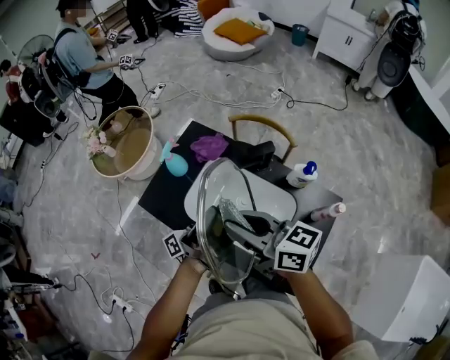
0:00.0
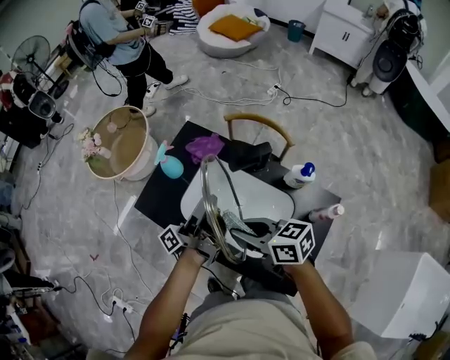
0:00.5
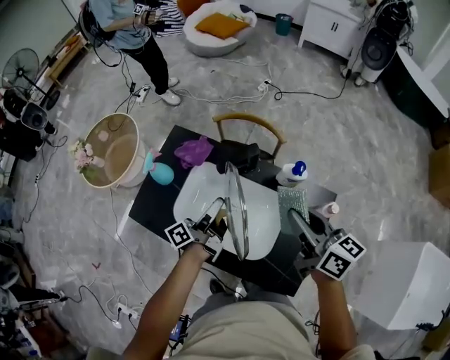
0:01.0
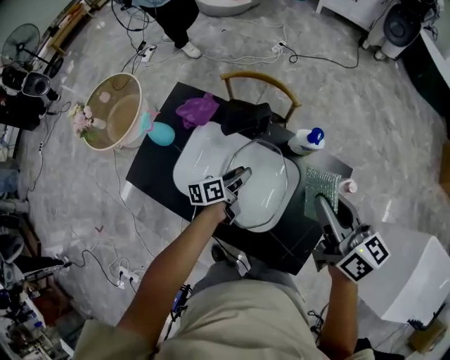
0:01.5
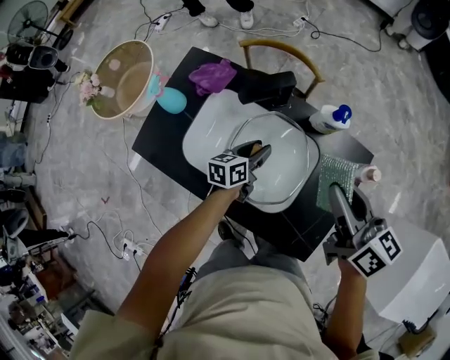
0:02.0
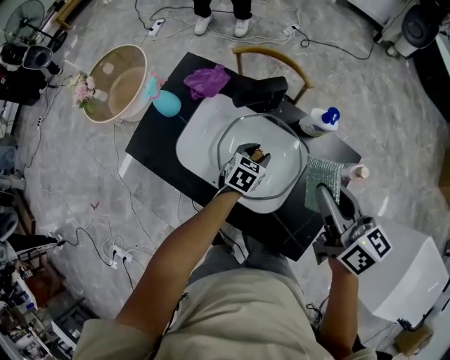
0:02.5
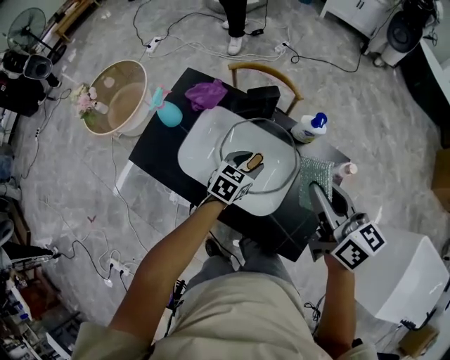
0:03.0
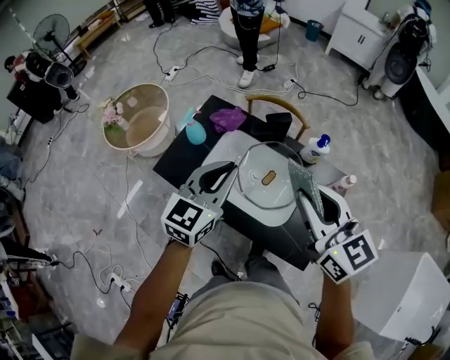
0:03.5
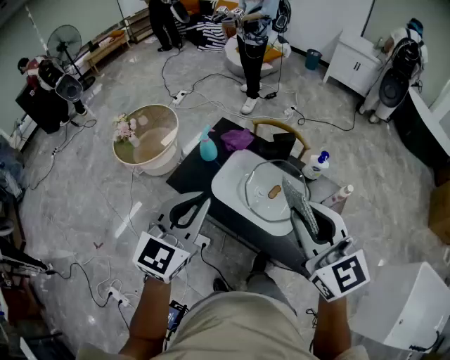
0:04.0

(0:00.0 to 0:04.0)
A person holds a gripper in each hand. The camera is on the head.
0:00.0 - 0:02.0: The right gripper moves up and down over approximately 10 cm, changing direction 2 times, and swivels about 30 degrees. Meanwhile the left gripper moves downward, roughly 25 cm, and tips its fingers downward by about 60 degrees.
0:02.0 - 0:04.0: The left gripper heads upward, backward and to the left, covering about 50 cm, rotates around the line of its fingers by approximately 50 degrees, clockwise from behind, and closes up, while the right gripper shifts approximately 30 cm upward, to the left and backward, and twists some 40 degrees counterclockwise, seen from behind.

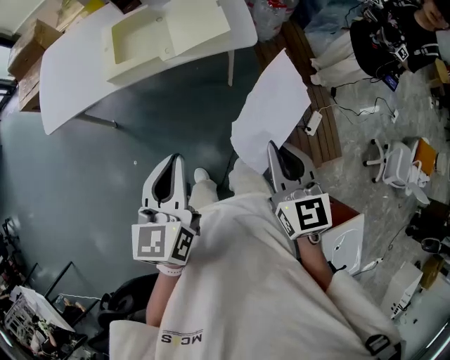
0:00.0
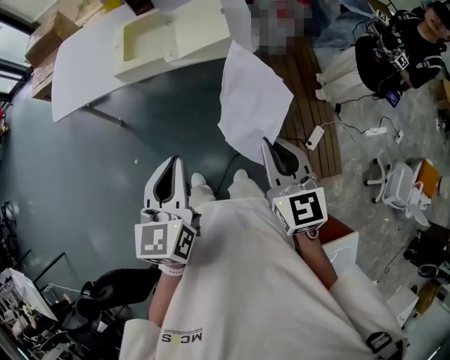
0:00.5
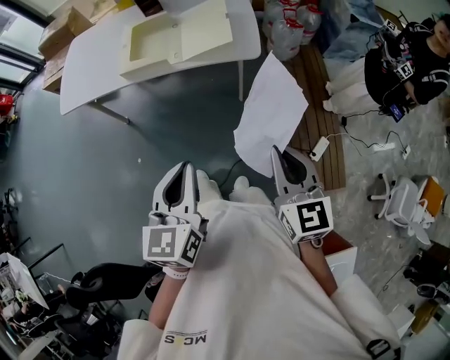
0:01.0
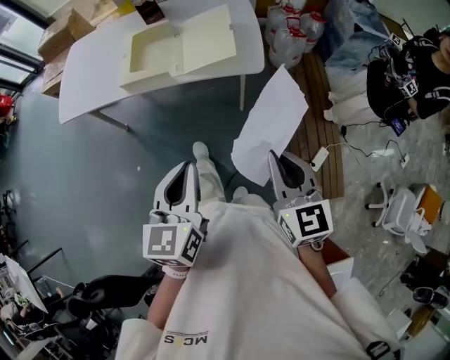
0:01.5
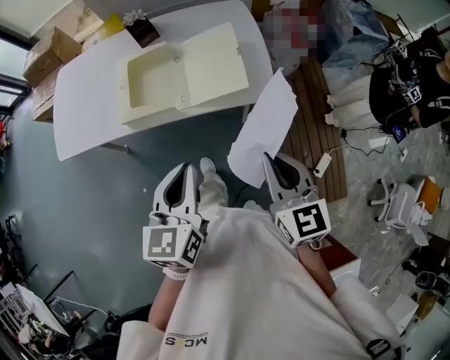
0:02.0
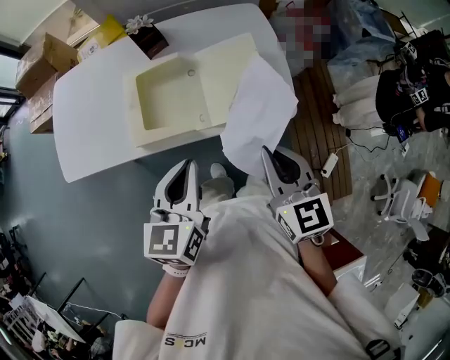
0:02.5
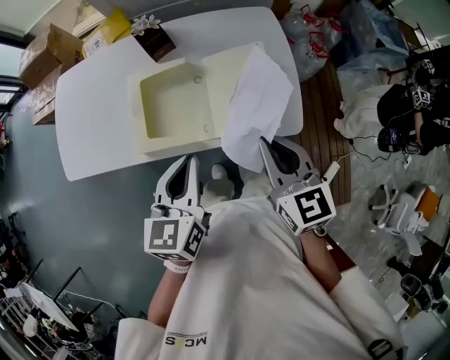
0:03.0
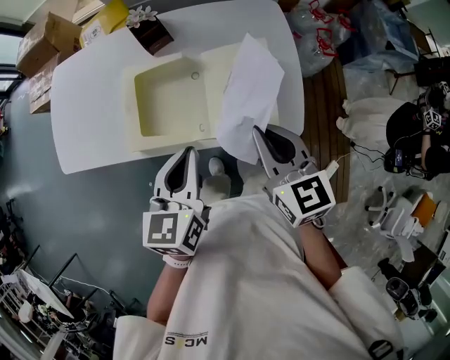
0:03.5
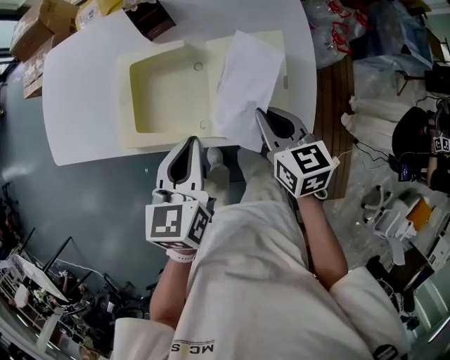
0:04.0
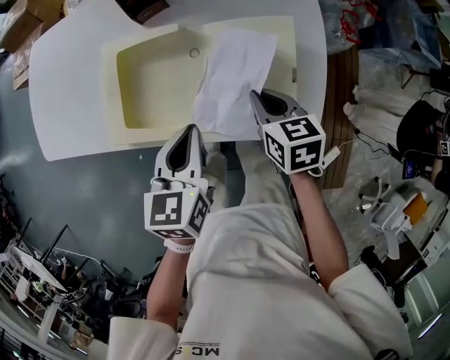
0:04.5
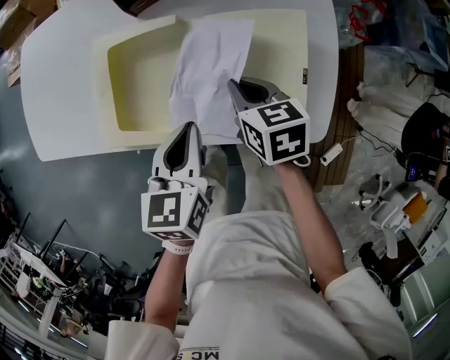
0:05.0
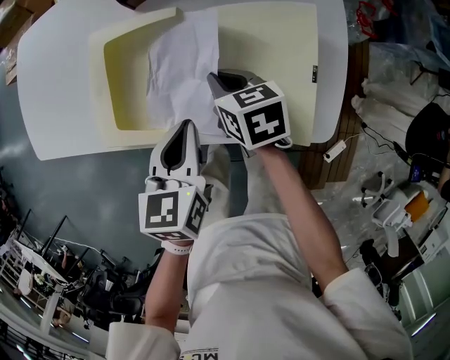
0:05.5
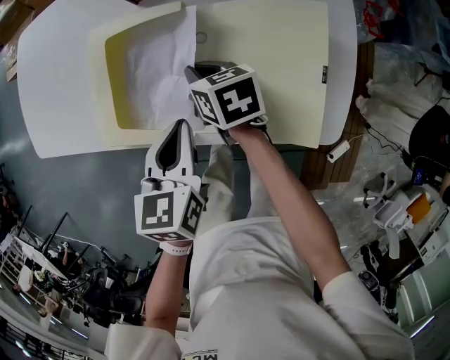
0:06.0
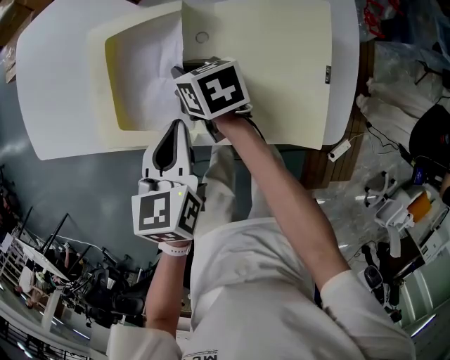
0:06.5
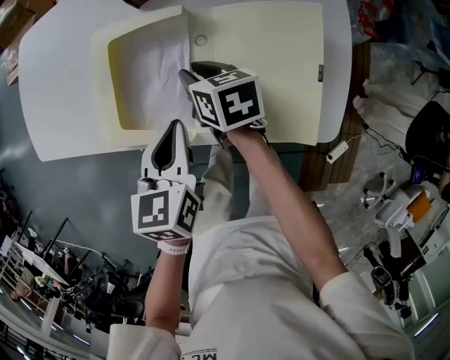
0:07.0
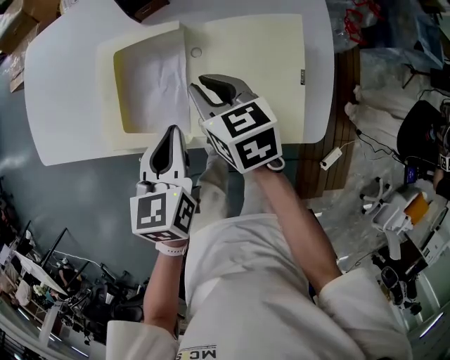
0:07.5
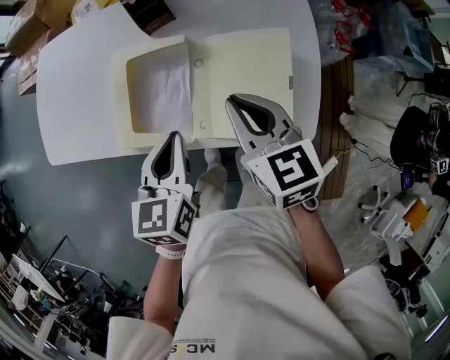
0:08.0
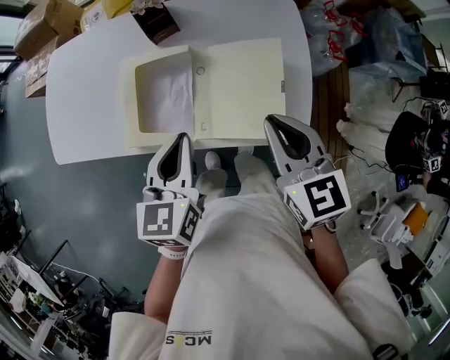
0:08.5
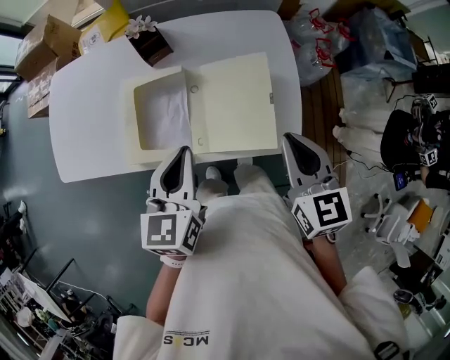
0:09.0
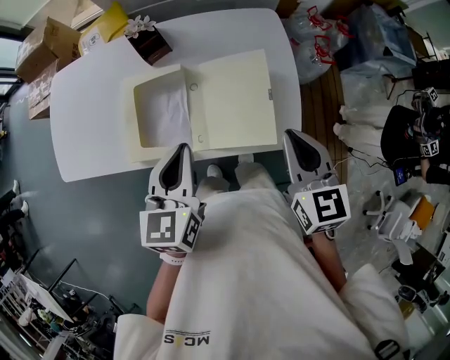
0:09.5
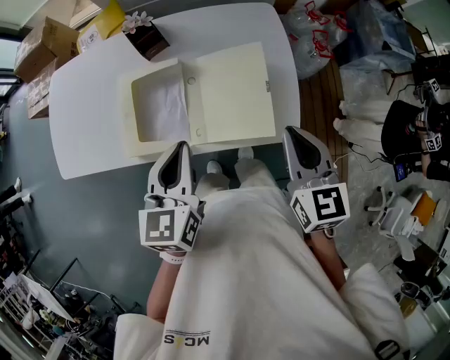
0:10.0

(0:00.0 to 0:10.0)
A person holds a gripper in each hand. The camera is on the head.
0:00.0 - 0:02.0: Both grippers travel together forward, about 15 cm.
0:02.0 - 0:04.0: The right gripper moves forward and downward, roughly 35 cm, and rotates approximately 20 degrees, while the left gripper is displaced forward by some 25 cm.
0:04.0 - 0:06.0: The right gripper is displaced downward, to the left and forward by approximately 25 cm, and swivels roughly 20 degrees. The left gripper moves downward, some 15 cm.
0:06.0 - 0:08.0: The right gripper goes about 25 cm upward and backward, and swivels about 30 degrees; the left gripper is displaced upward by roughly 10 cm.
0:08.0 - 0:10.0: The left gripper travels upward by about 10 cm. Meanwhile the right gripper heads to the right, backward and upward, covering some 20 cm, and changes its angle by about 20 degrees.

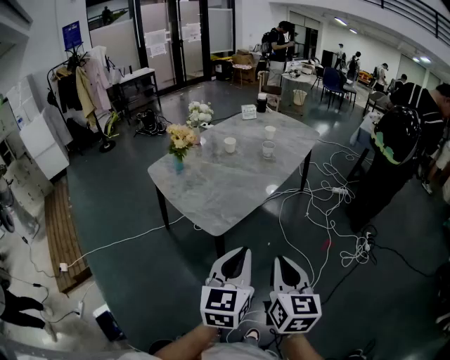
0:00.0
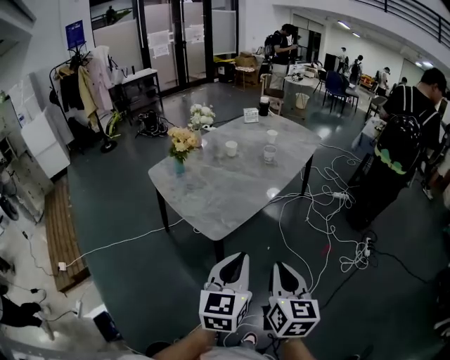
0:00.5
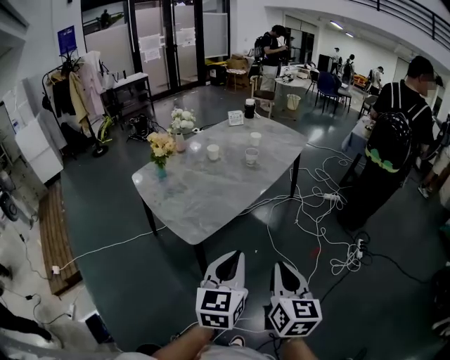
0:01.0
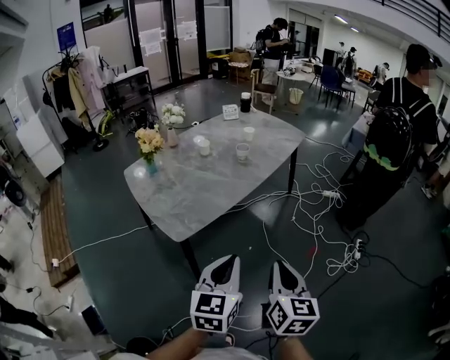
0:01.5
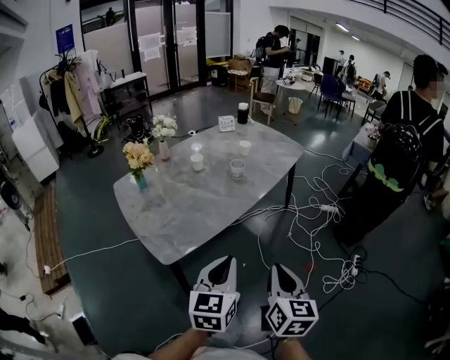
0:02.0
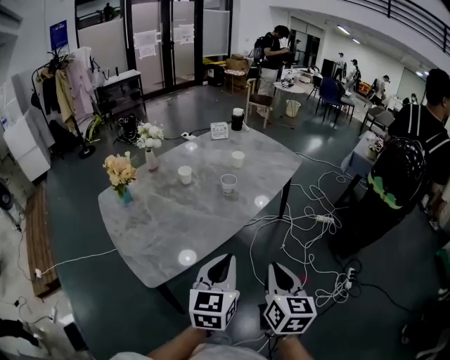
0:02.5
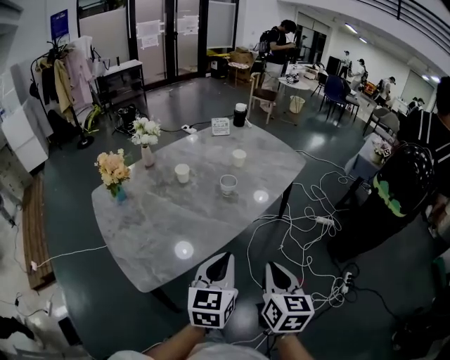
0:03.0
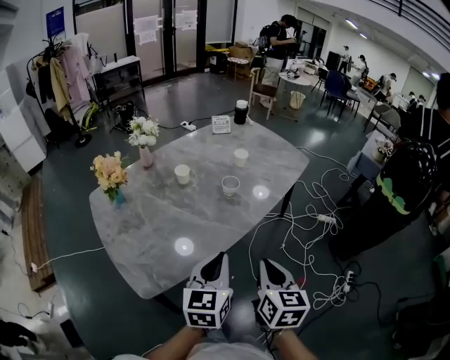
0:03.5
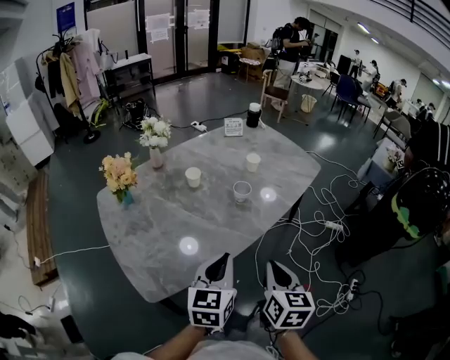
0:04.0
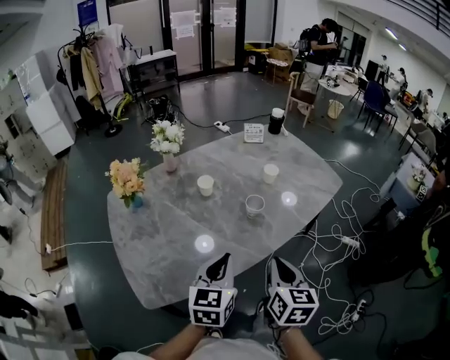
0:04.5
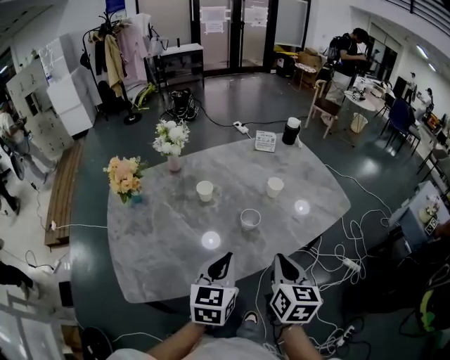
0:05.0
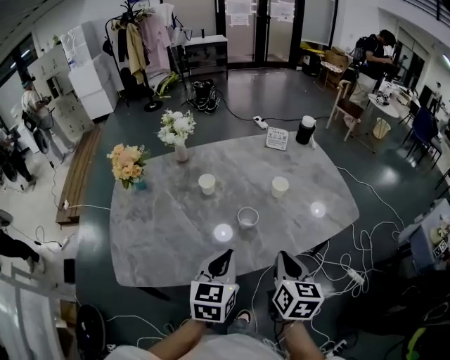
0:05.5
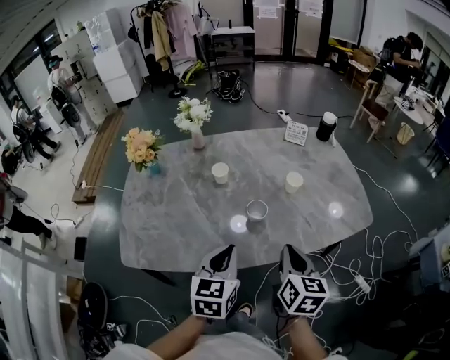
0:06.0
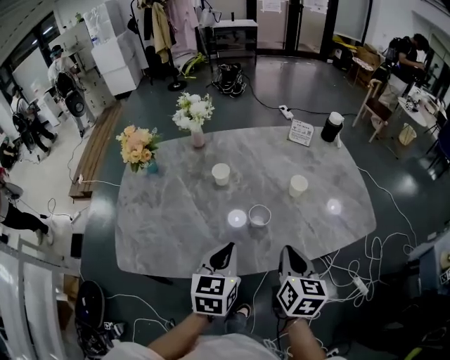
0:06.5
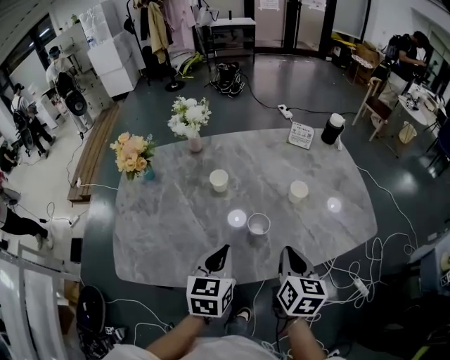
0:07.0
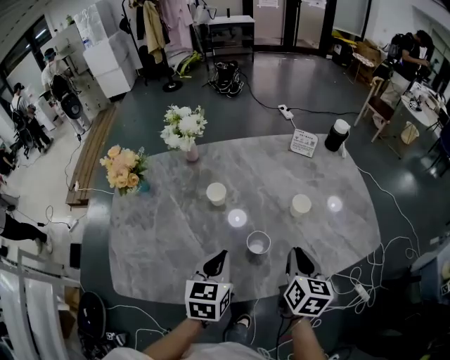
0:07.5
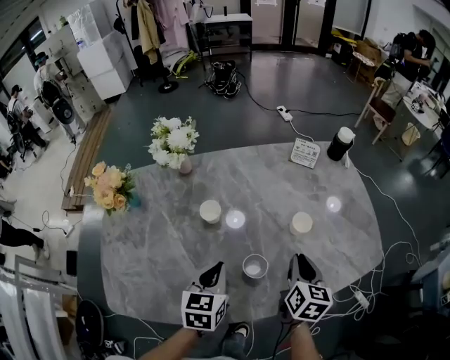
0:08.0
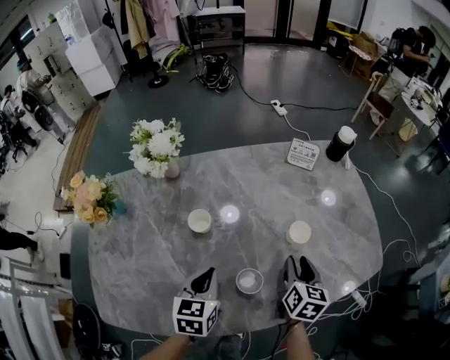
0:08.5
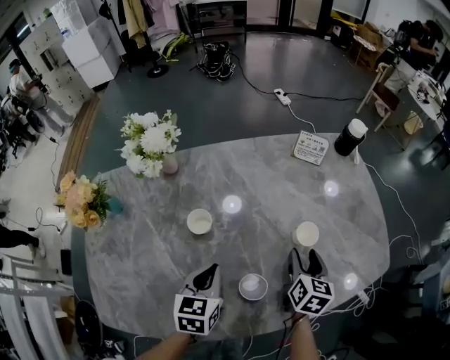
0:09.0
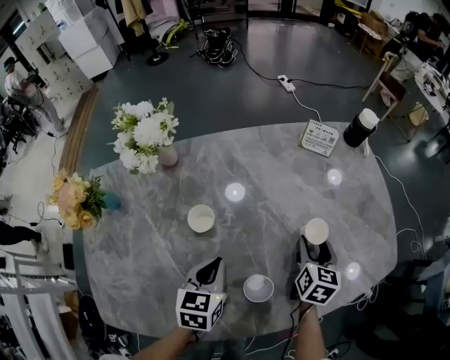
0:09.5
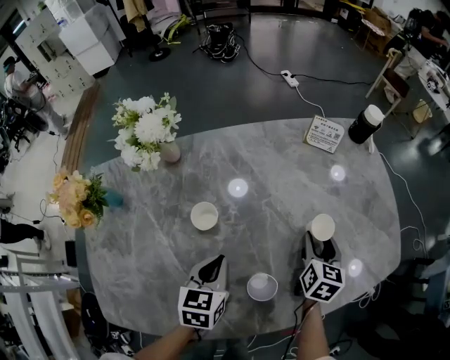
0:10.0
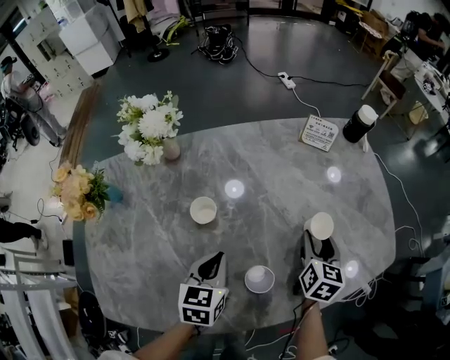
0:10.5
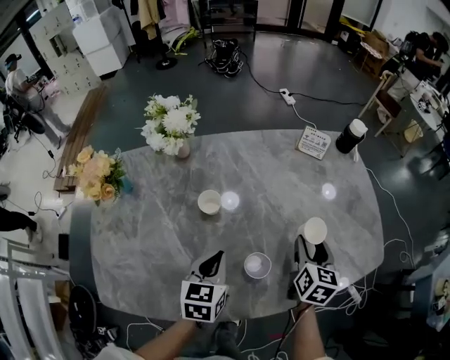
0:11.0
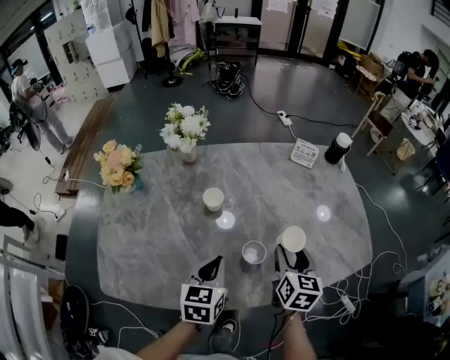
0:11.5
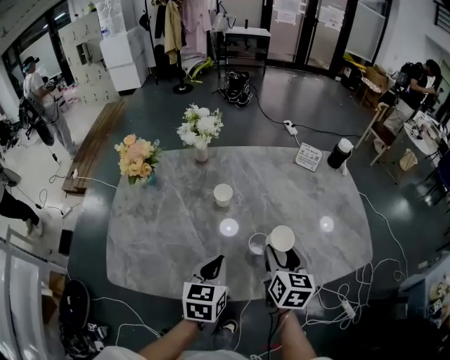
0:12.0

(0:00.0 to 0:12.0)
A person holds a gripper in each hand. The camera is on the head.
0:00.0 - 0:02.0: The left gripper moves forward and to the right, some 20 cm; the right gripper heads to the right and forward, covering approximately 25 cm.
0:02.0 - 0:04.0: Both grippers move forward, roughly 25 cm.
0:04.0 - 0:06.0: The right gripper moves some 25 cm, and changes its angle by roughly 30 degrees; the left gripper ends up approximately 20 cm from where it was, and rotates some 30 degrees.
0:06.0 - 0:08.0: The grippers both shift forward and downward by about 20 cm.
0:08.0 - 0:10.0: The right gripper is displaced forward and downward by some 15 cm, and opens its fingers. Meanwhile the left gripper is displaced downward and forward by approximately 10 cm.
0:10.0 - 0:12.0: The left gripper is displaced backward and upward by approximately 20 cm. Meanwhile the right gripper moves backward, upward and to the left, roughly 25 cm, and rotates some 20 degrees.
